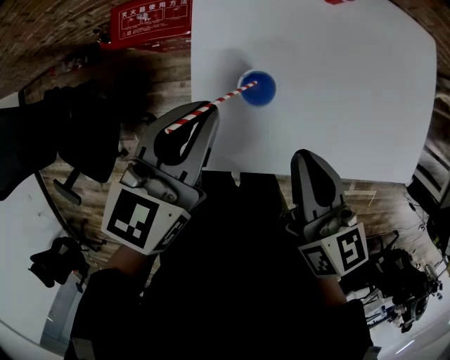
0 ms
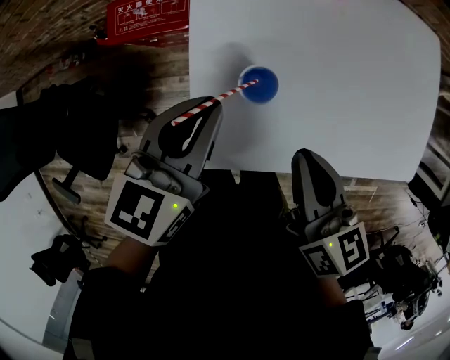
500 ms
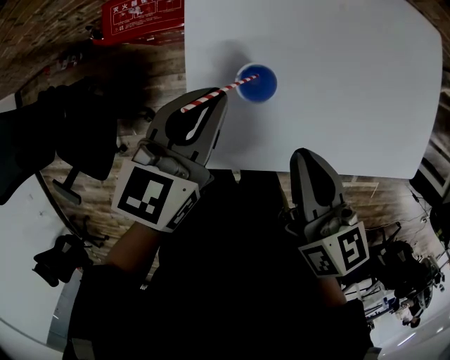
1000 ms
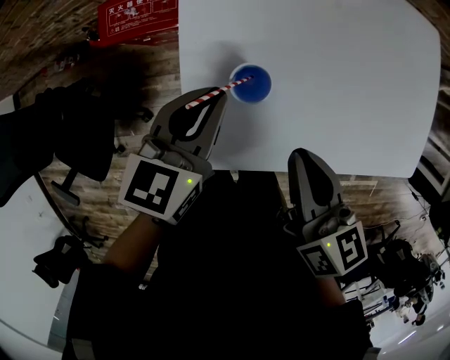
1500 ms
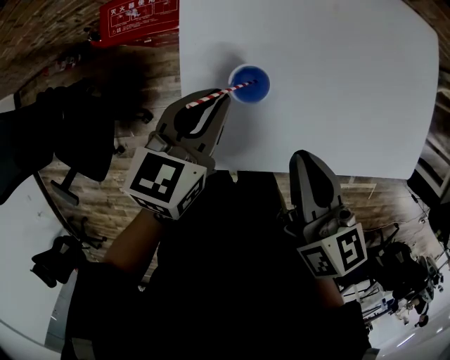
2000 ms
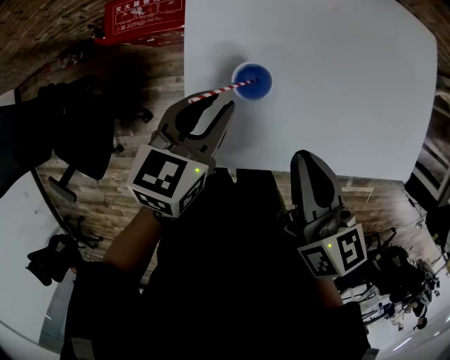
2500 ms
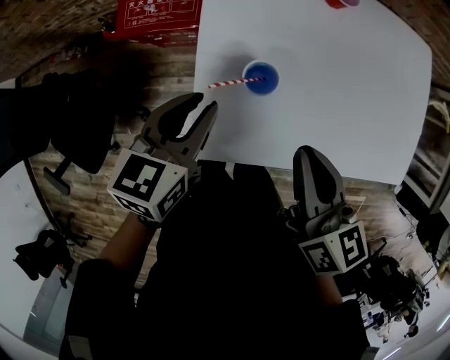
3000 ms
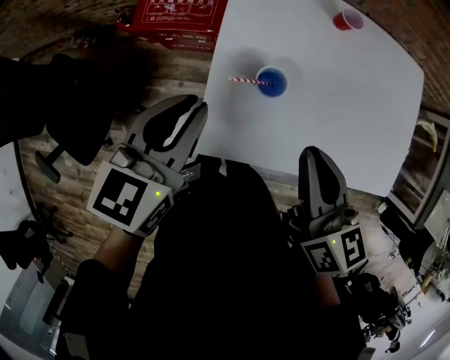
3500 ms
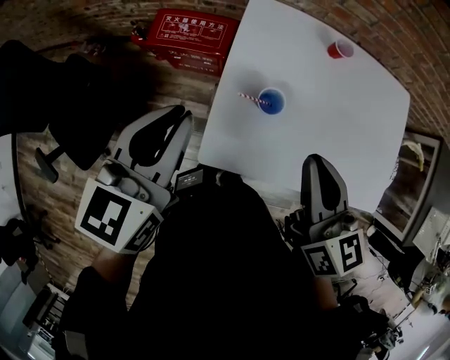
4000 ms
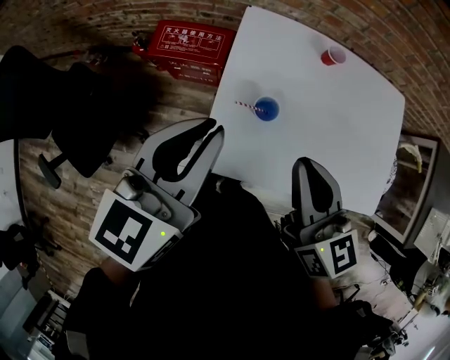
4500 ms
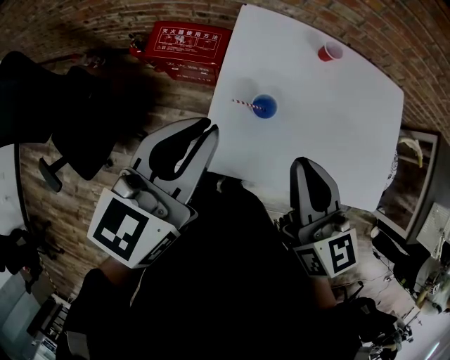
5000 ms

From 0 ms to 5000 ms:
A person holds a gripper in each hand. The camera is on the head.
From 0 ms to 2500 ms: The left gripper moves downward, some 10 cm.
From 2500 ms to 5000 ms: The right gripper travels upward by about 15 cm, and turns by about 30 degrees; the left gripper moves upward, approximately 25 cm, and changes its angle by about 30 degrees.

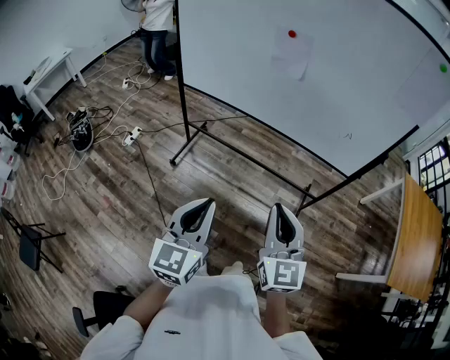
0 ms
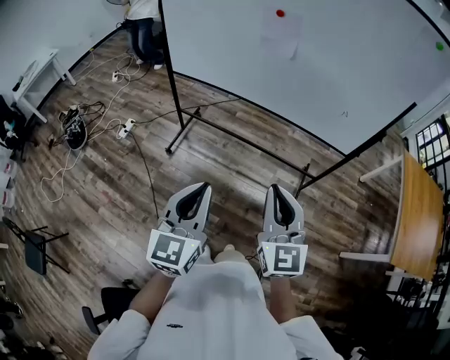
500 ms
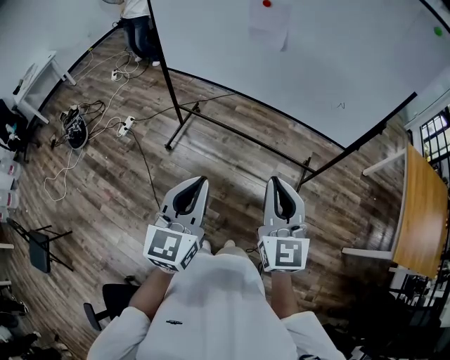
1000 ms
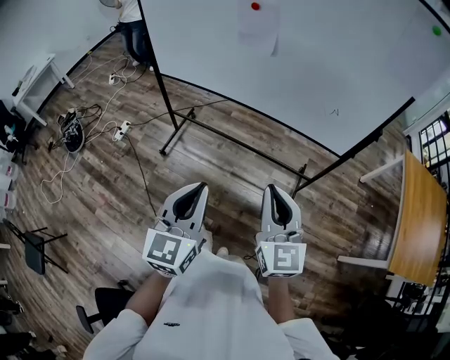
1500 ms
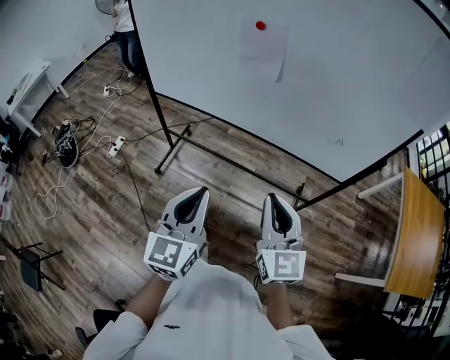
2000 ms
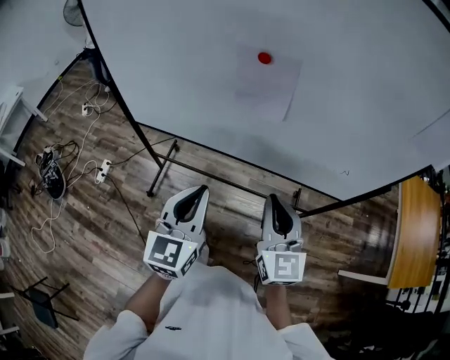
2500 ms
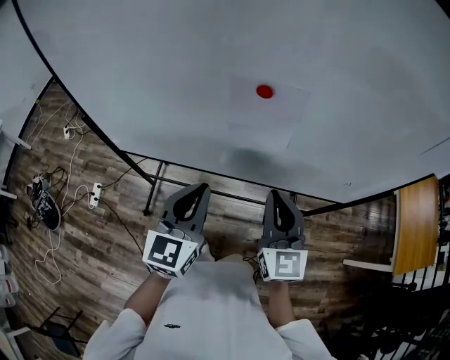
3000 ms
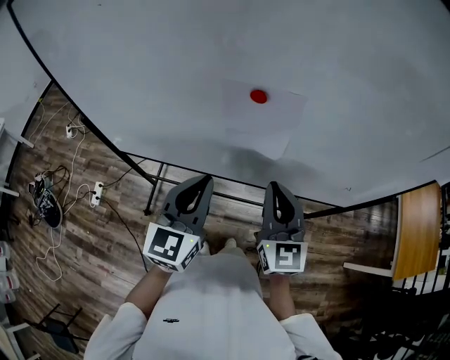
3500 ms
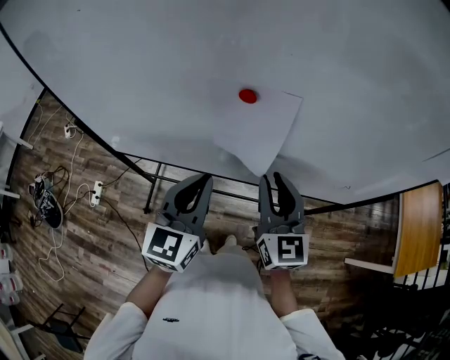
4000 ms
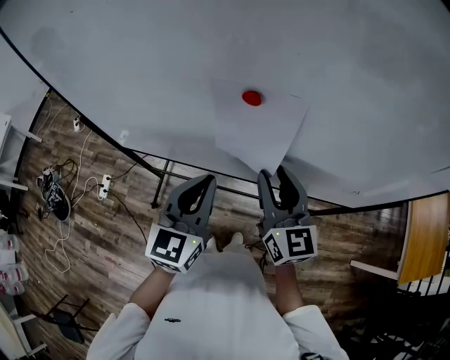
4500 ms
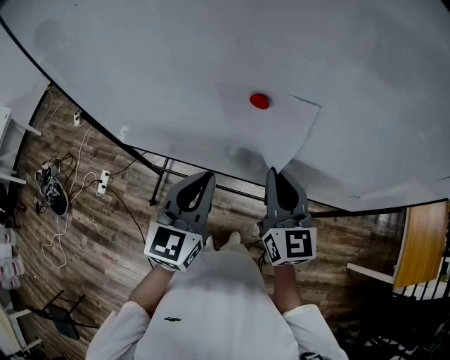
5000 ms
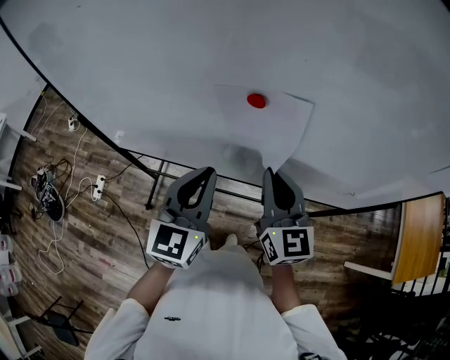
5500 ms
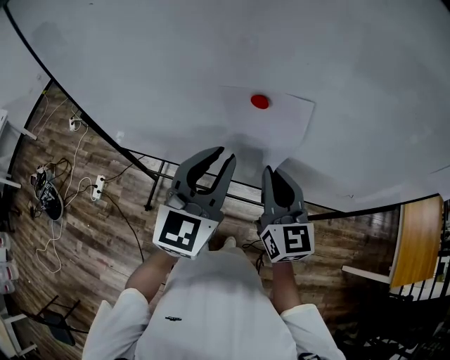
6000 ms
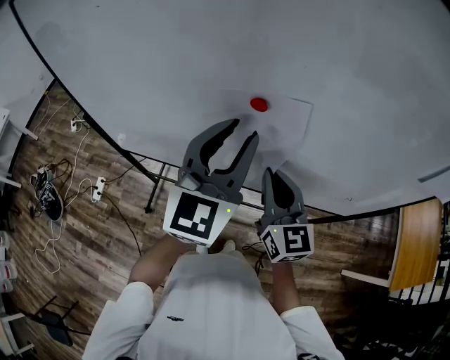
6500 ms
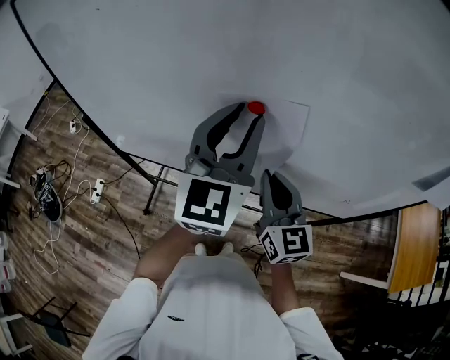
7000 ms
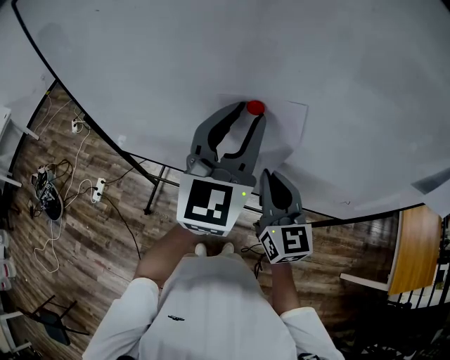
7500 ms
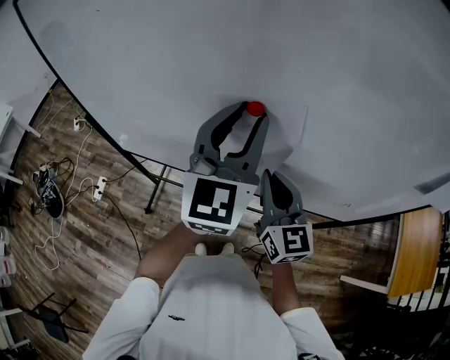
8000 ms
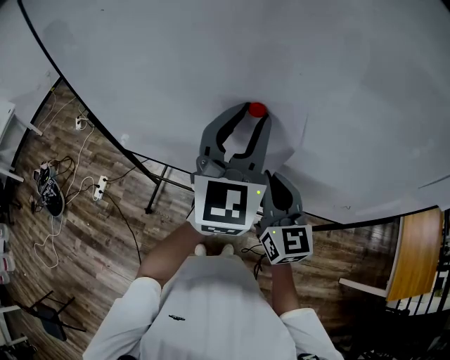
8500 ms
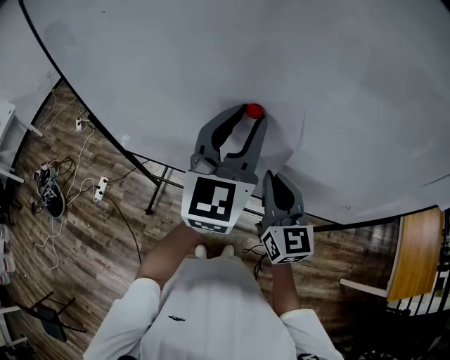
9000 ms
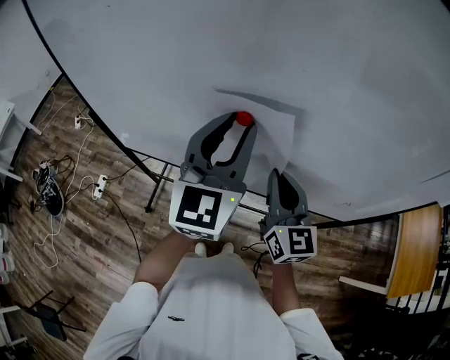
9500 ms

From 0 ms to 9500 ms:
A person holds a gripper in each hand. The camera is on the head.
From 0 ms to 2000 ms: Both grippers move forward, roughly 15 cm.
From 2000 ms to 4000 ms: The two grippers go about 35 cm forward.
From 4000 ms to 5500 ms: The grippers move only a little.
From 5500 ms to 7500 ms: The left gripper shifts approximately 15 cm upward and forward, and opens.
From 7500 ms to 9500 ms: The grippers make only small movements.

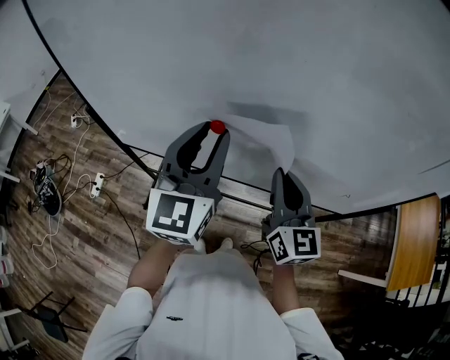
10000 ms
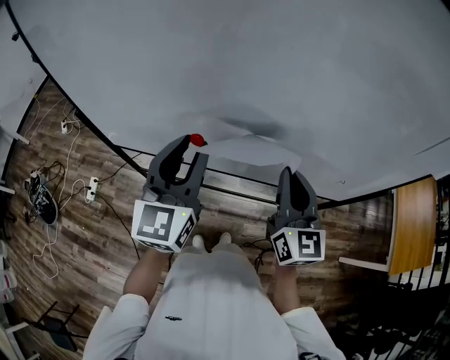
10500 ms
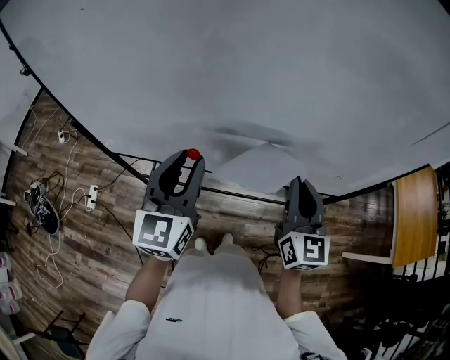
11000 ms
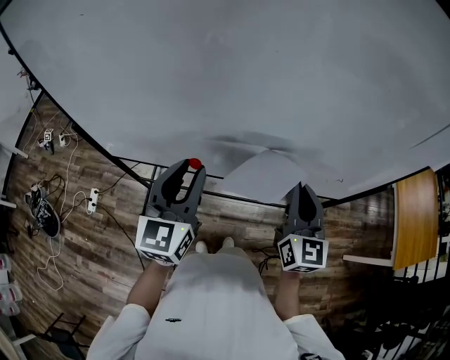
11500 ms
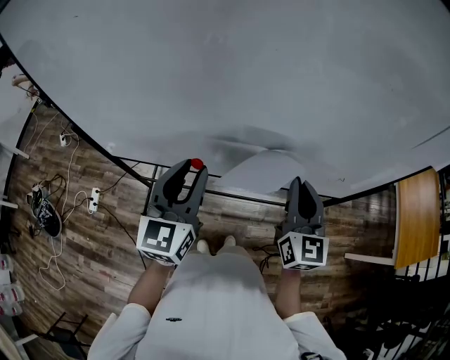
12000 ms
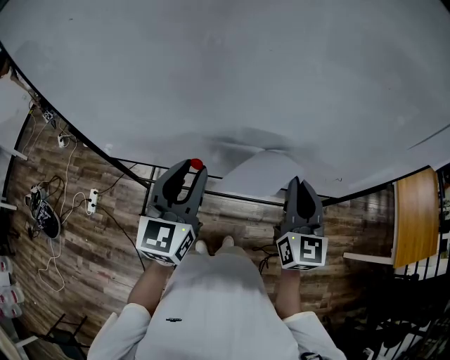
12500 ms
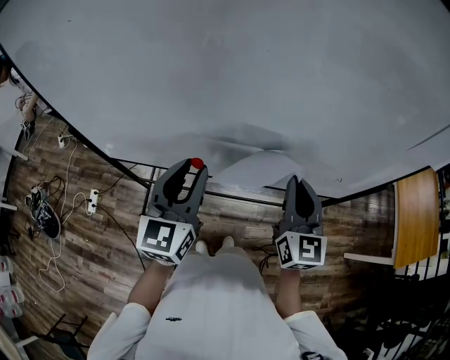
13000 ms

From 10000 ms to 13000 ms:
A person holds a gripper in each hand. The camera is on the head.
From 10000 ms to 11500 ms: The left gripper shifts roughly 10 cm downward; the right gripper travels to the right by about 10 cm.
From 11500 ms to 13000 ms: Both grippers stay put.

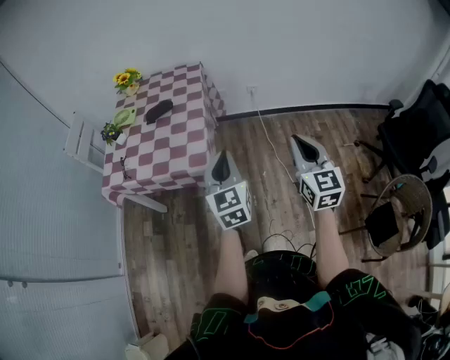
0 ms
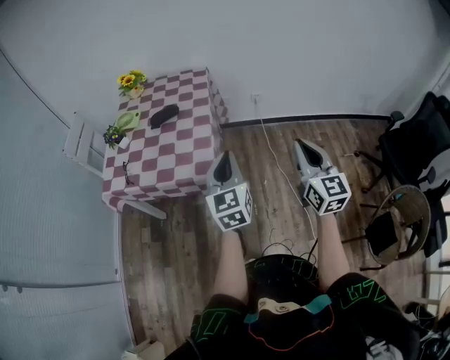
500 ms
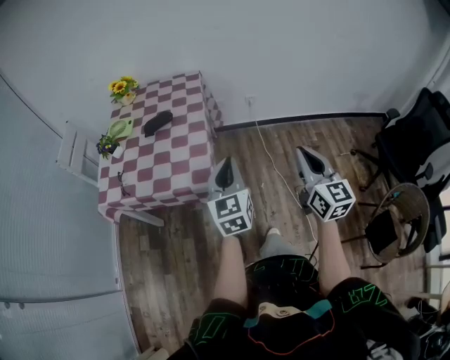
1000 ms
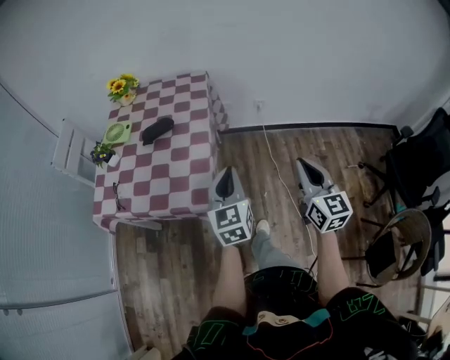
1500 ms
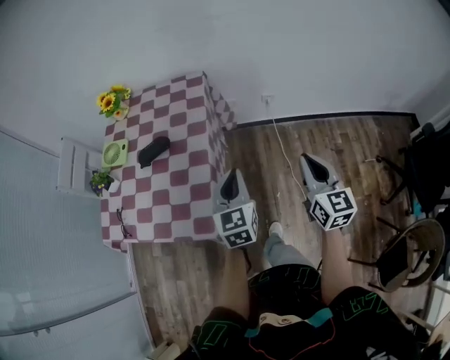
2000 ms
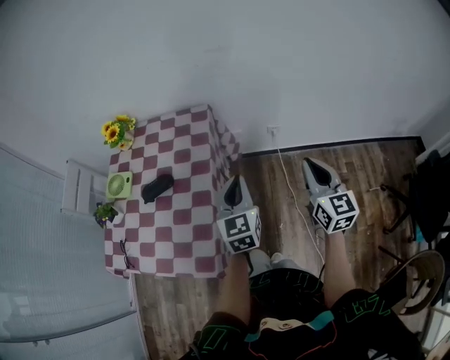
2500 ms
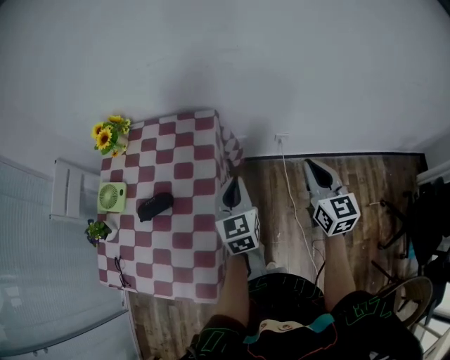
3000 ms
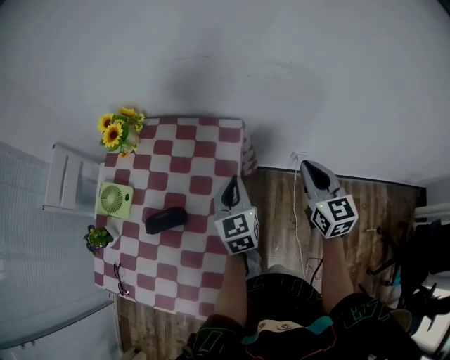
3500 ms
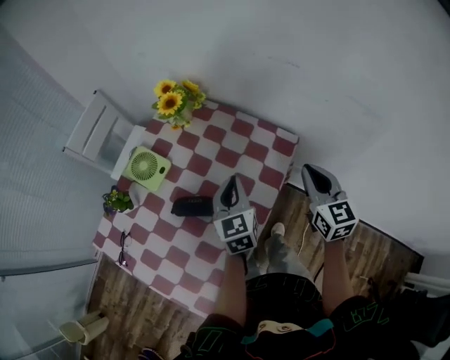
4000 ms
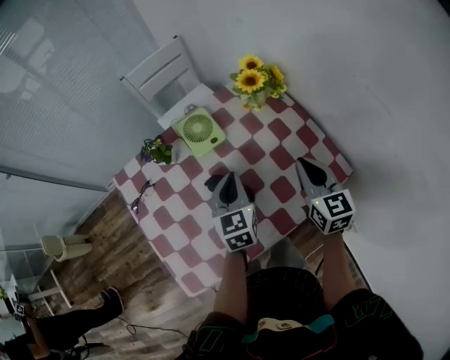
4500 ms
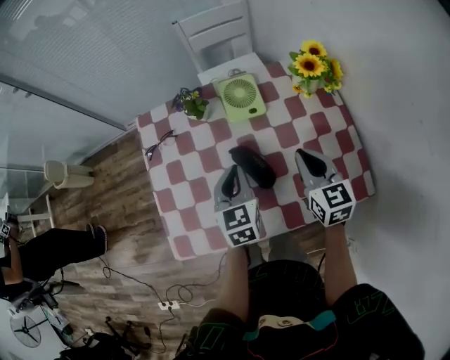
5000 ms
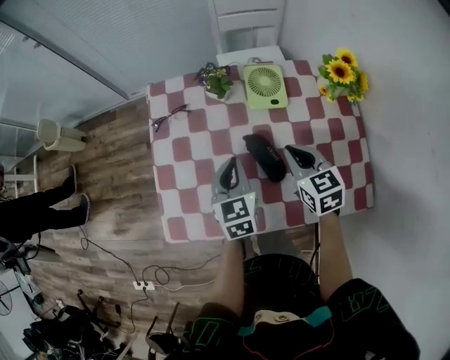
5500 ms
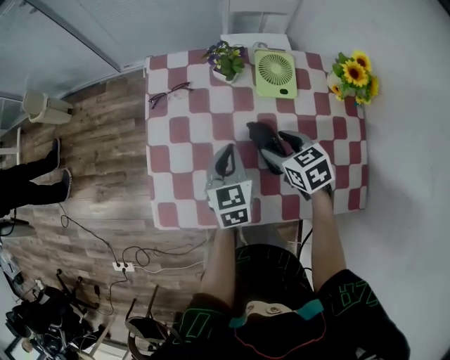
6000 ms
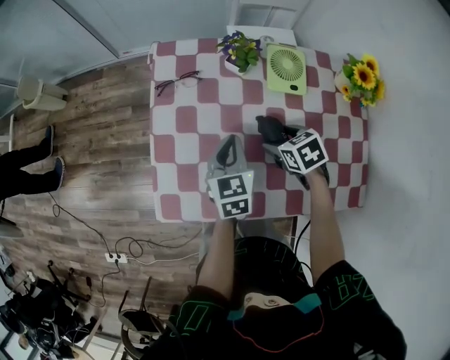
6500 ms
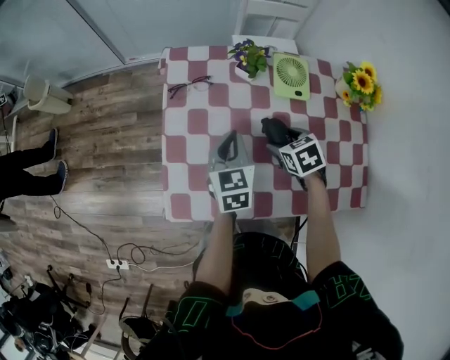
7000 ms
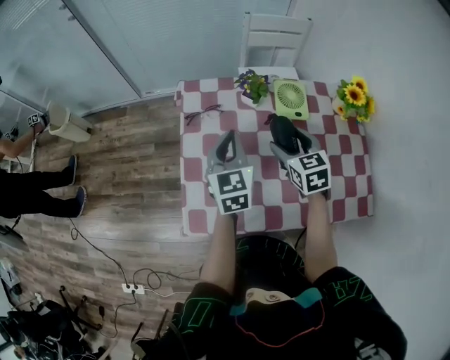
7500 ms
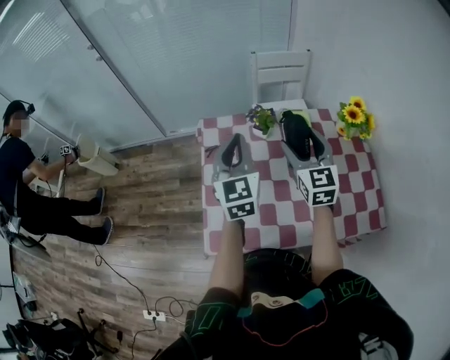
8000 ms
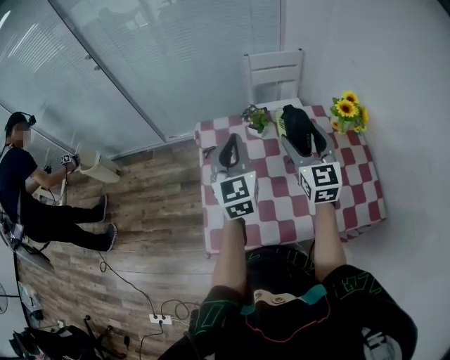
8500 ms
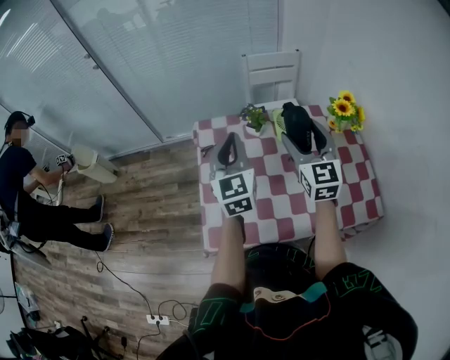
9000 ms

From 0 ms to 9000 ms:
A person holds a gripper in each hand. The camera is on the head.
From 0 ms to 2000 ms: The grippers both shift forward by approximately 25 cm.
From 2000 ms to 4500 ms: The two grippers travel together, some 50 cm. The right gripper turns by about 60 degrees. The left gripper changes its angle by some 60 degrees.
From 4500 ms to 7000 ms: The left gripper changes place by about 20 cm, and turns by approximately 30 degrees; the right gripper changes place by some 30 cm, tilts its fingers roughly 40 degrees downward, and opens.
From 7000 ms to 9000 ms: The two grippers go roughly 25 cm upward. The left gripper changes its angle by roughly 30 degrees. Meanwhile the right gripper tilts its fingers roughly 60 degrees upward.
